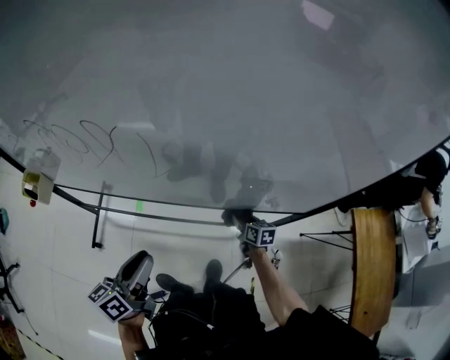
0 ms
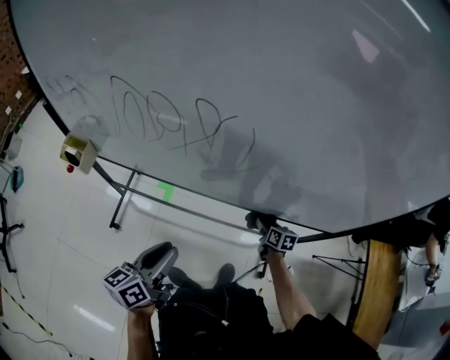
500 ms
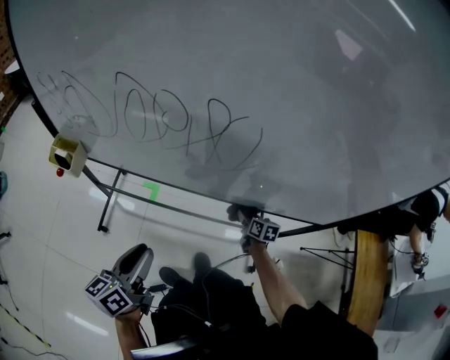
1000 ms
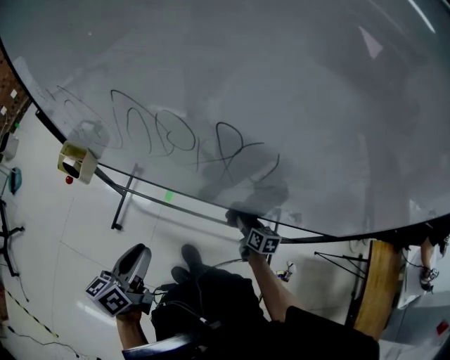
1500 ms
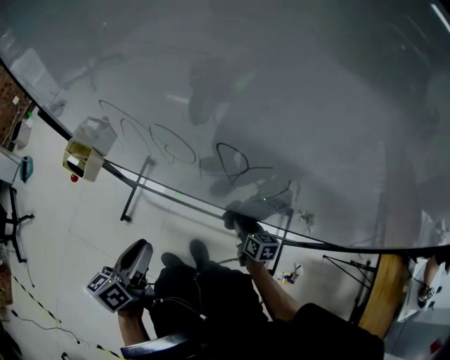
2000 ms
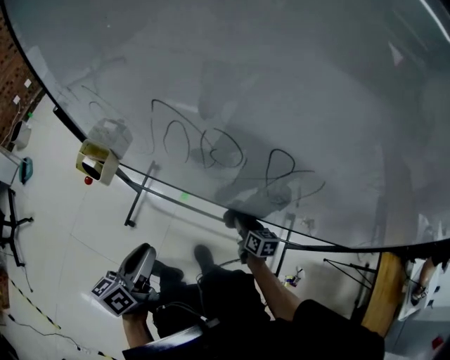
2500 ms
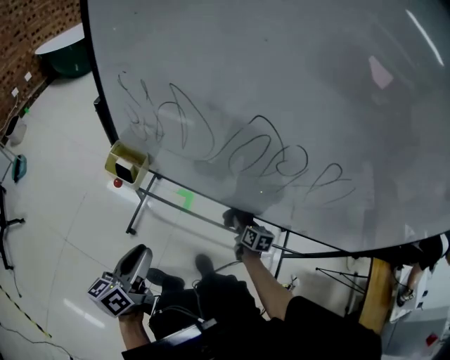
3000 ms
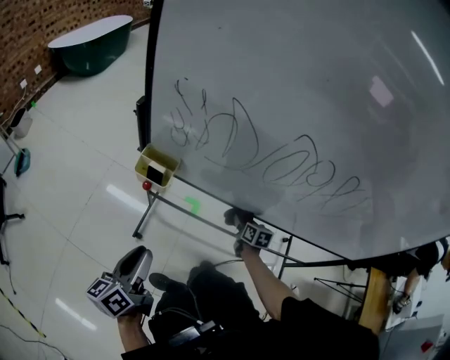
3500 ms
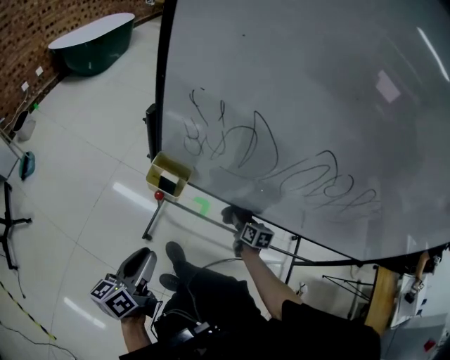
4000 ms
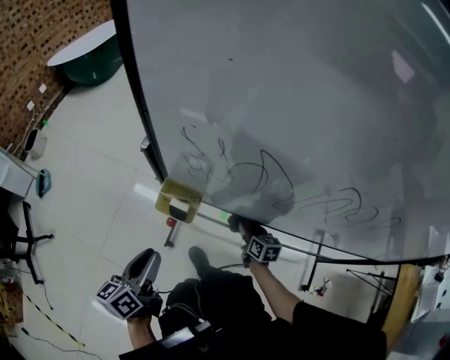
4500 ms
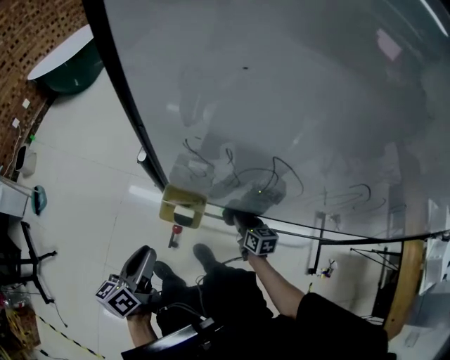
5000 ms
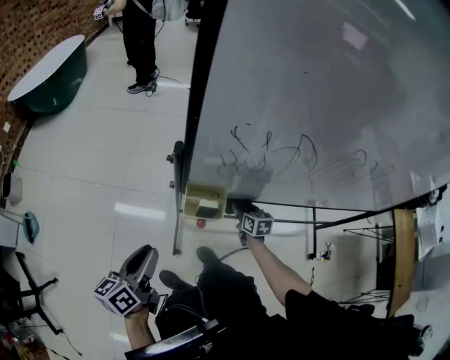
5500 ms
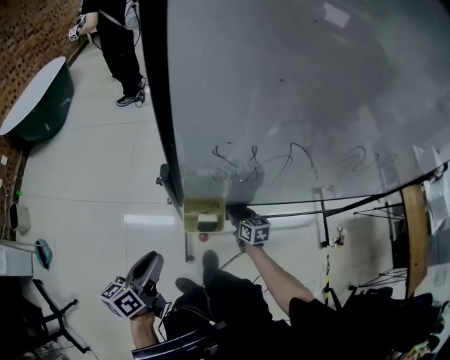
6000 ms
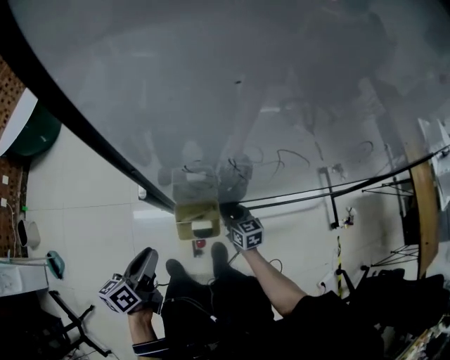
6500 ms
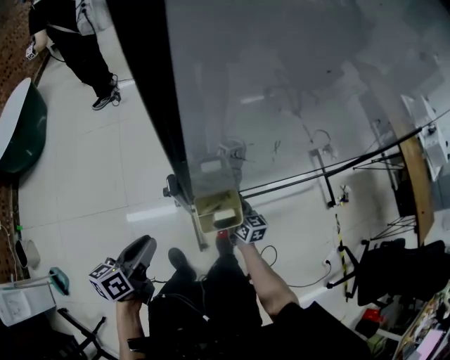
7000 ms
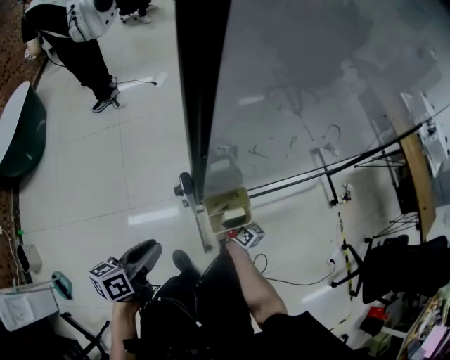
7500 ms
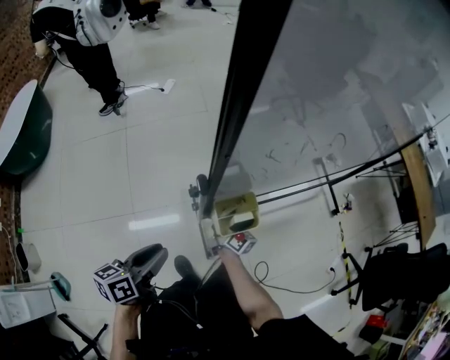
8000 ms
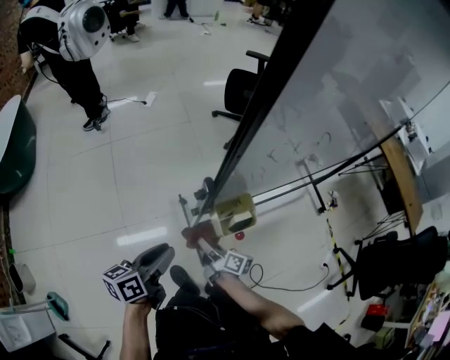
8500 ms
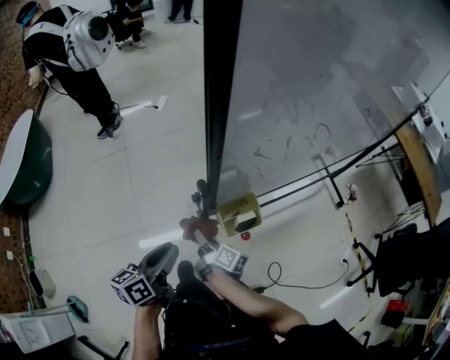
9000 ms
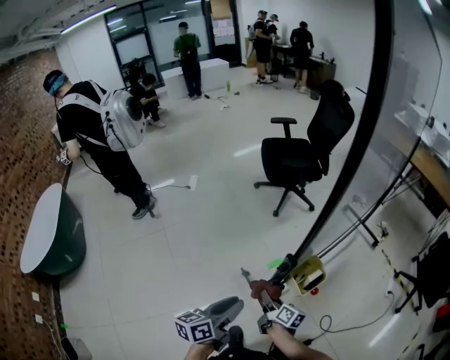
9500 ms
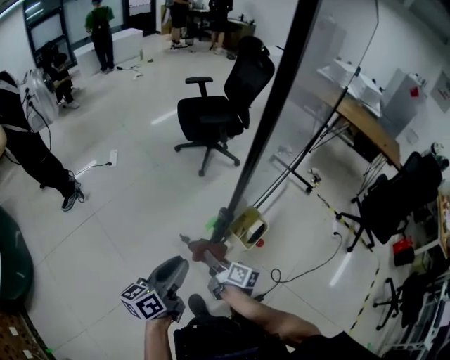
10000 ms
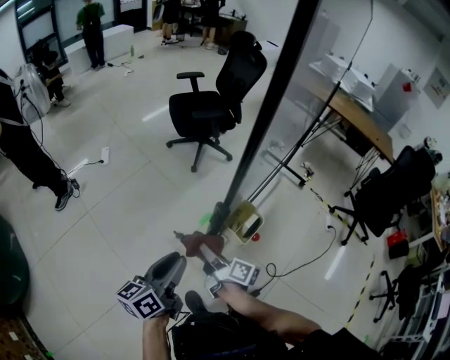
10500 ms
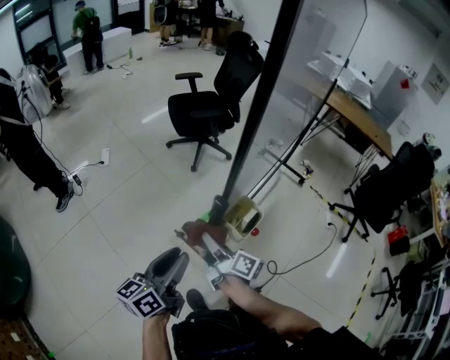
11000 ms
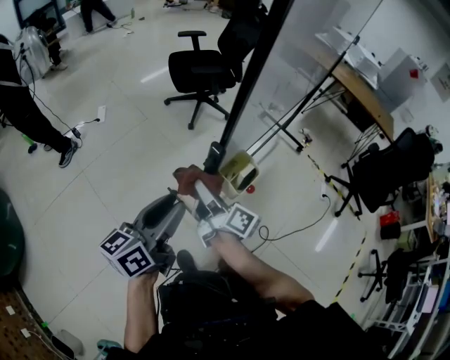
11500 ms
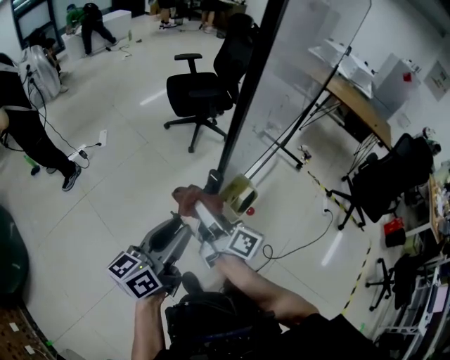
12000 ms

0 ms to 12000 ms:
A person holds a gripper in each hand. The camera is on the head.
0 ms to 2000 ms: The grippers both shift to the left by about 20 cm.
2000 ms to 4000 ms: Both grippers travel together to the left, approximately 30 cm.
4000 ms to 6000 ms: The left gripper moves to the left and forward, about 20 cm, and rotates approximately 20 degrees. The right gripper heads to the left, covering some 15 cm.
6000 ms to 8000 ms: The left gripper is displaced to the left and forward by some 10 cm, and changes its angle by approximately 30 degrees. The right gripper is displaced to the left by approximately 15 cm, and angles its fingers upward, by some 30 degrees.
8000 ms to 10000 ms: The left gripper heads forward and to the left, covering some 10 cm, and swivels approximately 30 degrees. Meanwhile the right gripper travels to the left, upward and backward by some 10 cm, and swivels about 30 degrees.
10000 ms to 12000 ms: The left gripper shifts some 10 cm upward, while the right gripper shifts roughly 20 cm upward, and rotates roughly 20 degrees.

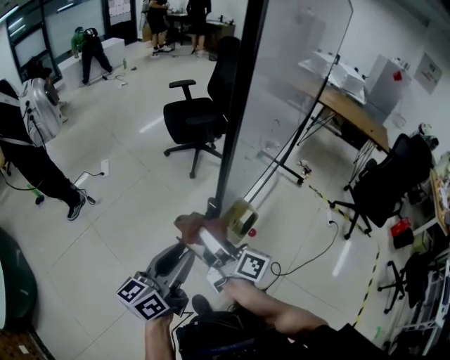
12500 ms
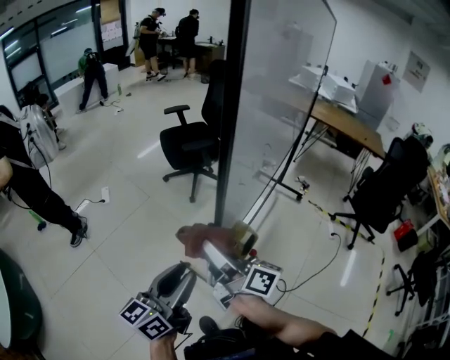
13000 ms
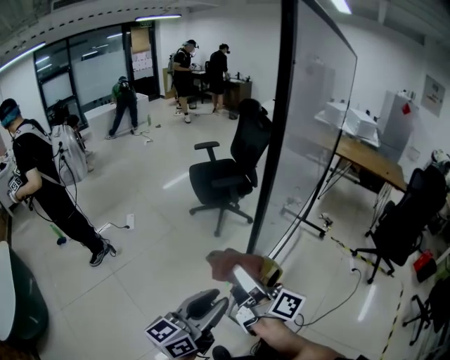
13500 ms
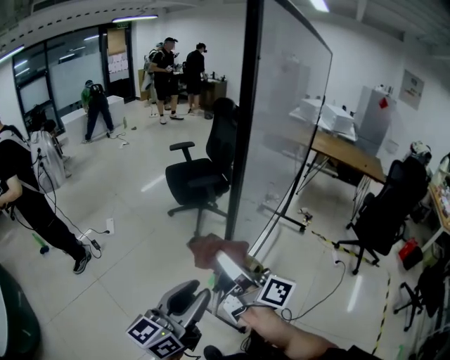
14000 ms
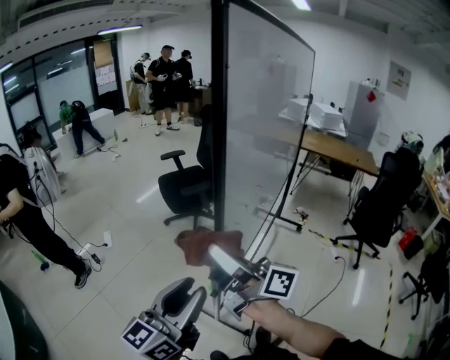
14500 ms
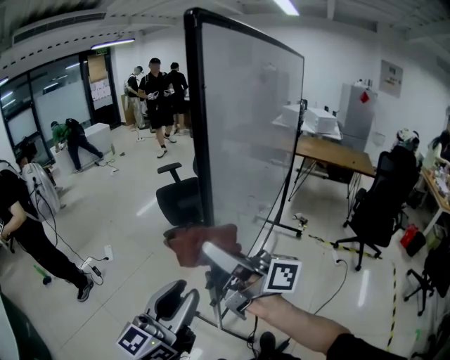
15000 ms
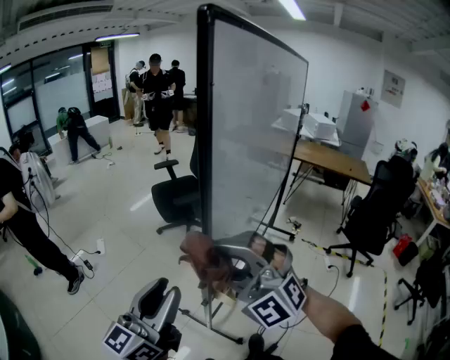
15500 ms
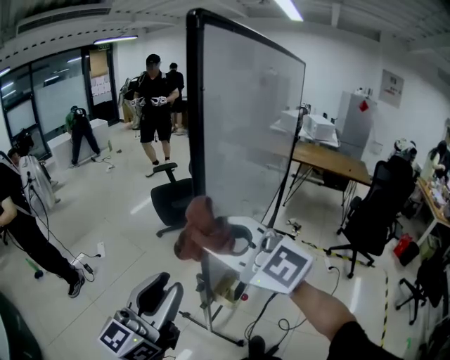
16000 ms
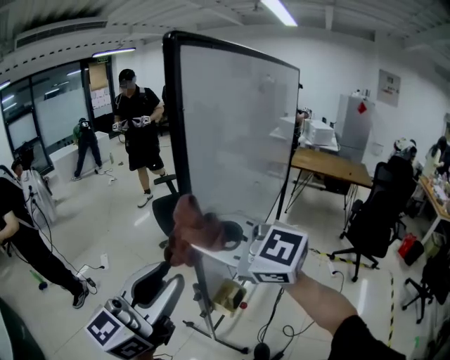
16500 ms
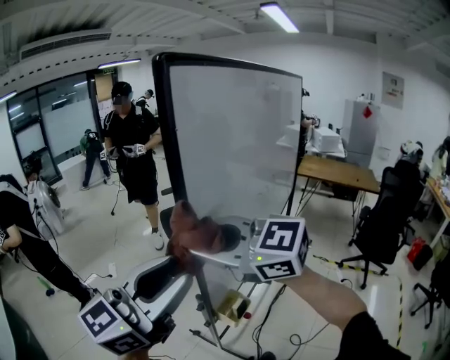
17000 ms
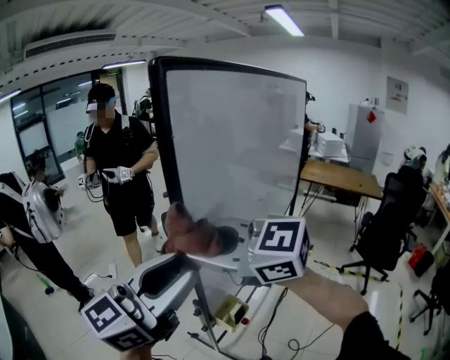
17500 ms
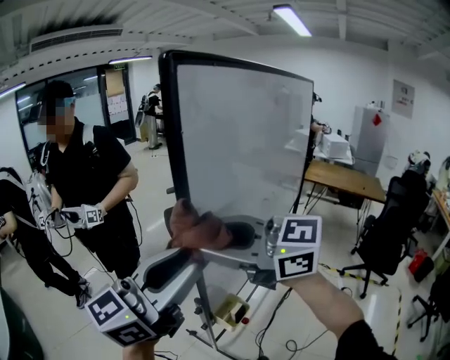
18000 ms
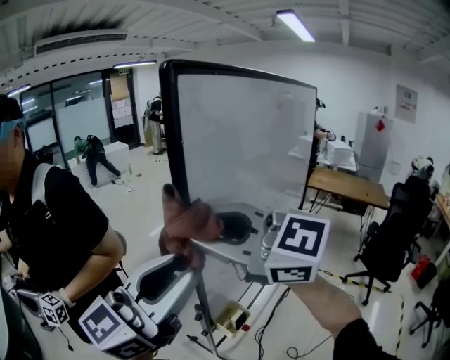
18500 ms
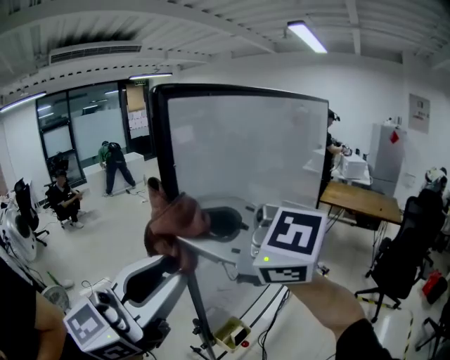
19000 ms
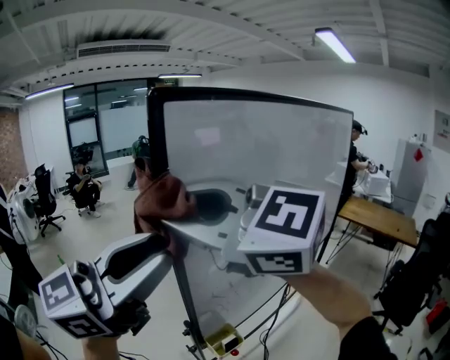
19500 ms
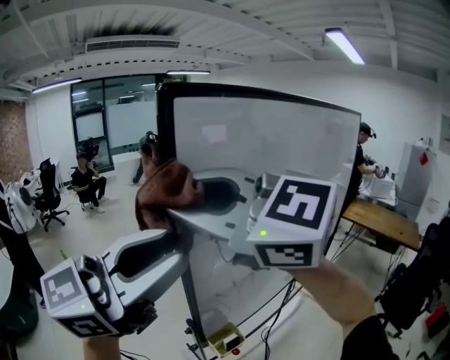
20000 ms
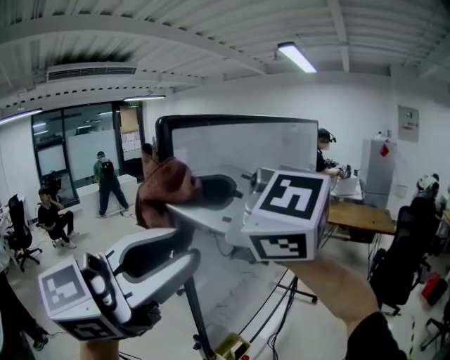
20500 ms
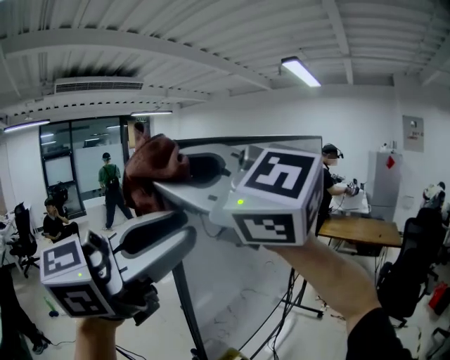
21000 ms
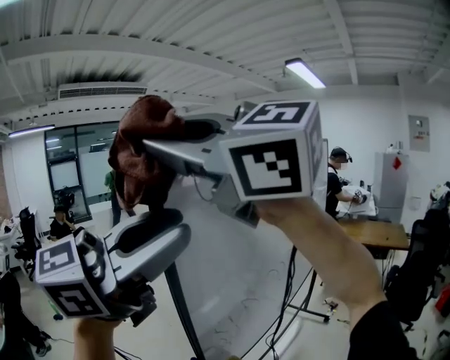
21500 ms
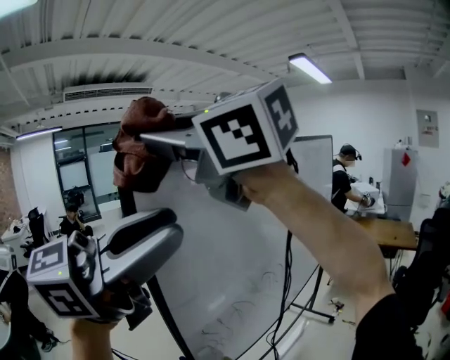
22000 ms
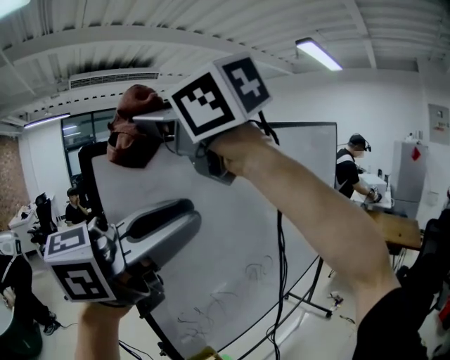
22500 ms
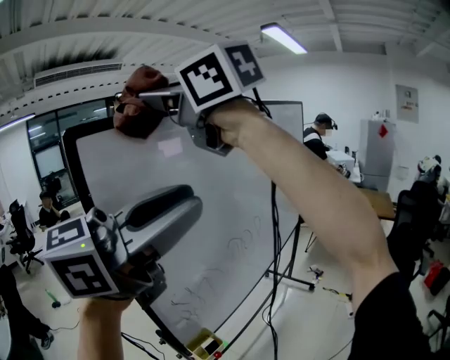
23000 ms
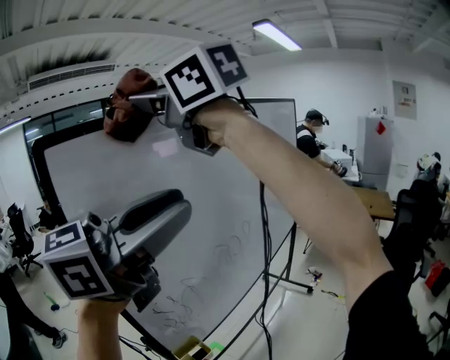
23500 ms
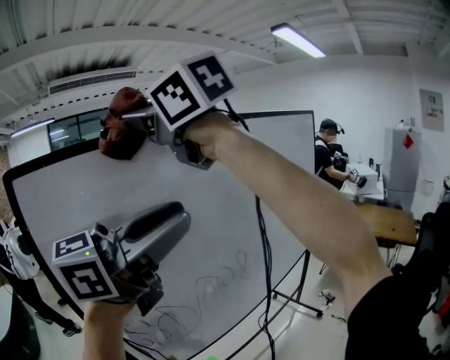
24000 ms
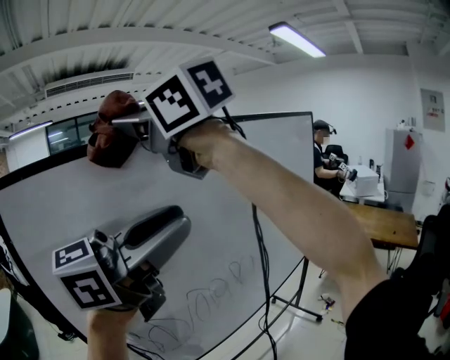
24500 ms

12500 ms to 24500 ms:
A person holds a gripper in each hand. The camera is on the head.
12500 ms to 14500 ms: The right gripper shifts roughly 20 cm upward. The left gripper is displaced upward by about 15 cm, and changes its angle by roughly 20 degrees.
14500 ms to 16500 ms: Both grippers travel together upward, about 10 cm. The right gripper rotates around the line of its fingers by about 70 degrees, counterclockwise from behind.
16500 ms to 18500 ms: The right gripper shifts roughly 10 cm upward. Meanwhile the left gripper shifts roughly 10 cm upward and to the right.
18500 ms to 20500 ms: Both grippers move upward, about 10 cm.
20500 ms to 22500 ms: The right gripper goes roughly 15 cm upward. The left gripper changes place by about 15 cm.
22500 ms to 24500 ms: The left gripper goes roughly 20 cm to the right and forward; the right gripper travels forward and to the right by some 20 cm.

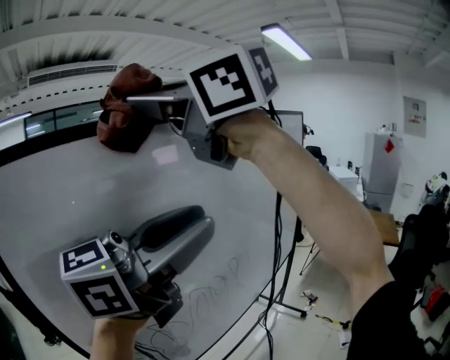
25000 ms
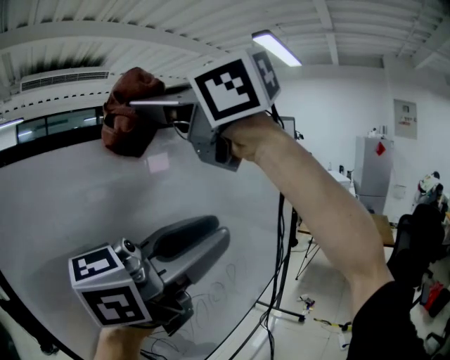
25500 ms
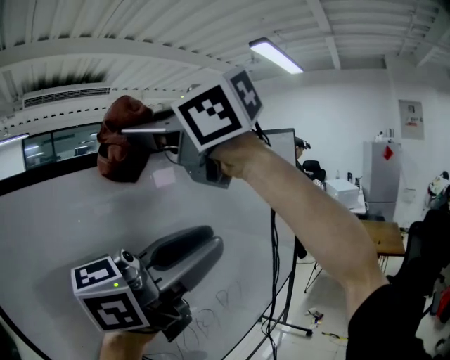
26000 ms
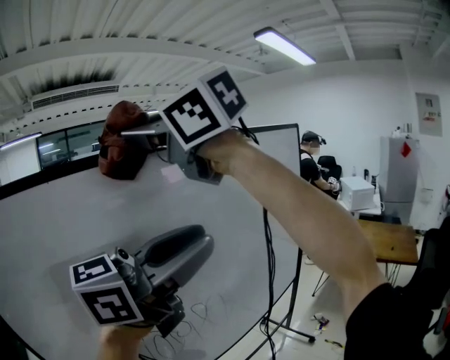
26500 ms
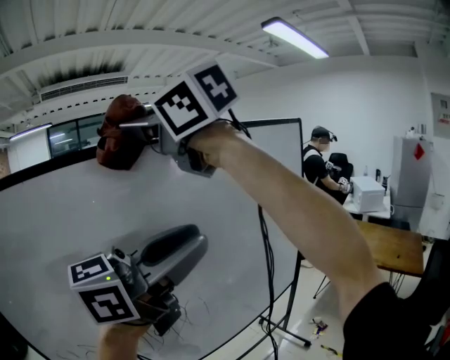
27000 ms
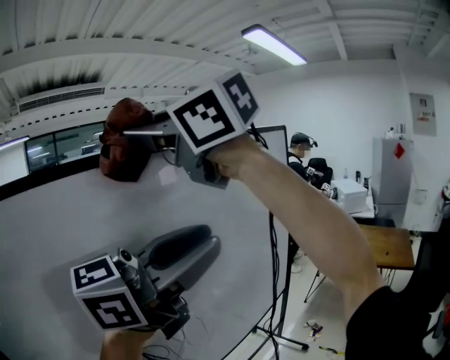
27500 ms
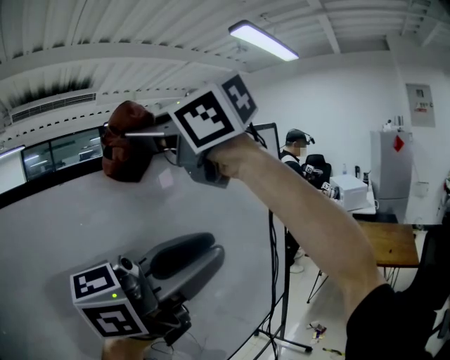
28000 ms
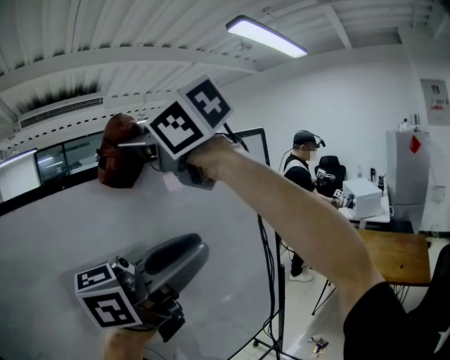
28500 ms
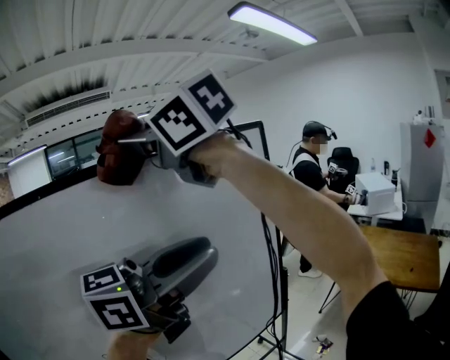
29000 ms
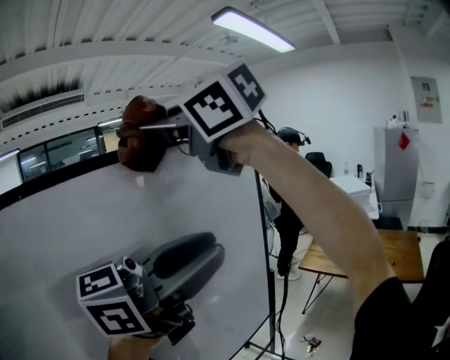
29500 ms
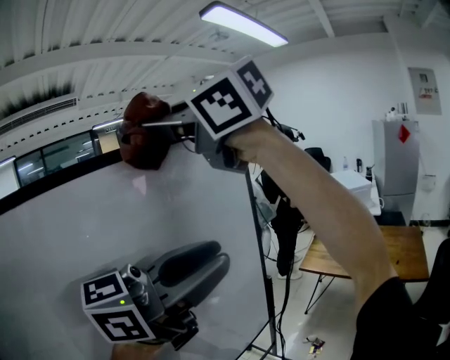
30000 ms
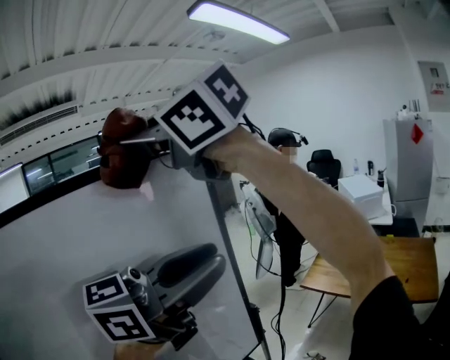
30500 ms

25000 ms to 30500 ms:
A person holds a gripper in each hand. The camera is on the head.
25000 ms to 27000 ms: The left gripper changes place by some 25 cm. The right gripper changes place by approximately 25 cm.
27000 ms to 28500 ms: The left gripper shifts by about 20 cm; the right gripper changes place by roughly 20 cm.
28500 ms to 30500 ms: The right gripper changes place by approximately 25 cm, while the left gripper changes place by about 25 cm.
